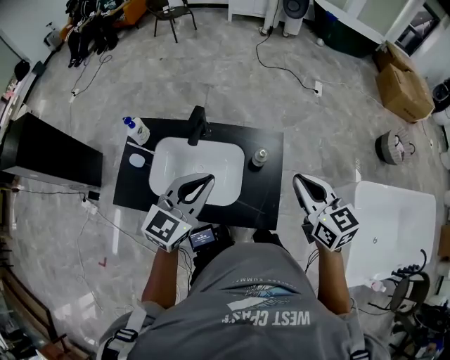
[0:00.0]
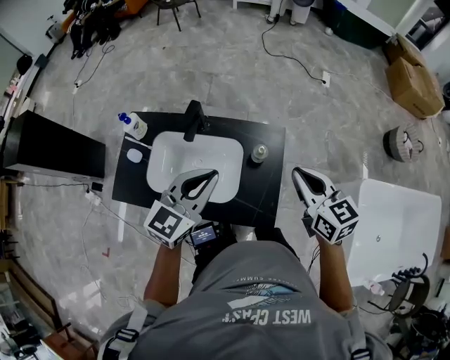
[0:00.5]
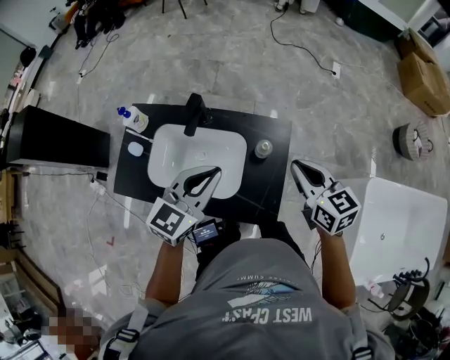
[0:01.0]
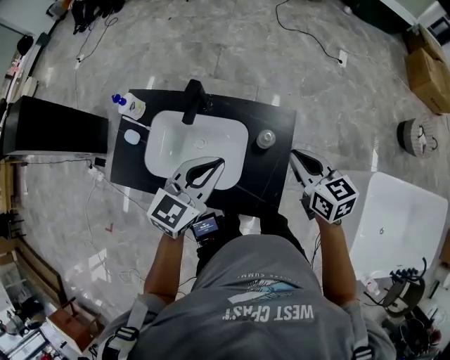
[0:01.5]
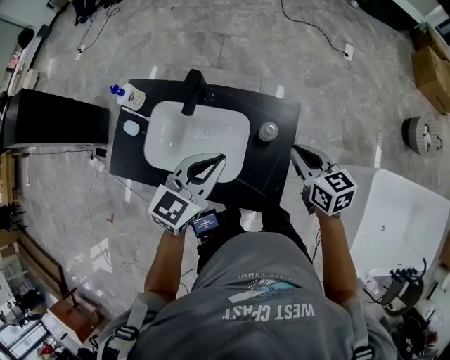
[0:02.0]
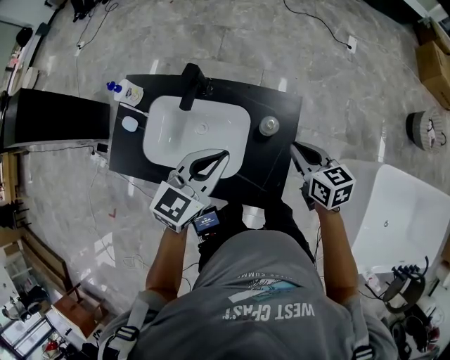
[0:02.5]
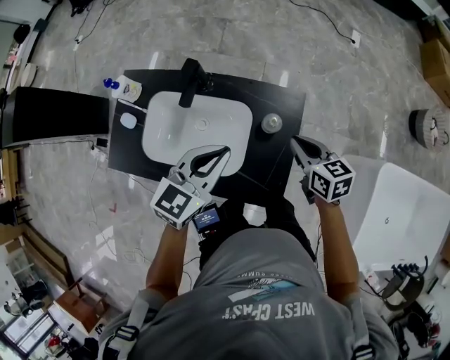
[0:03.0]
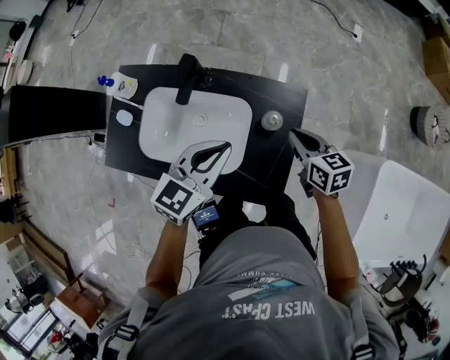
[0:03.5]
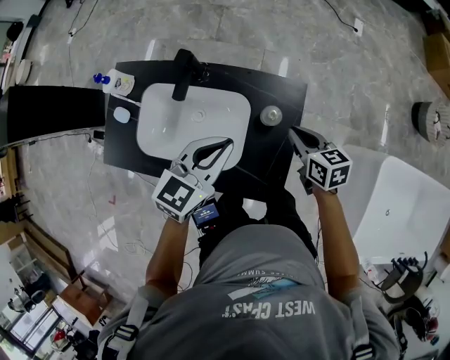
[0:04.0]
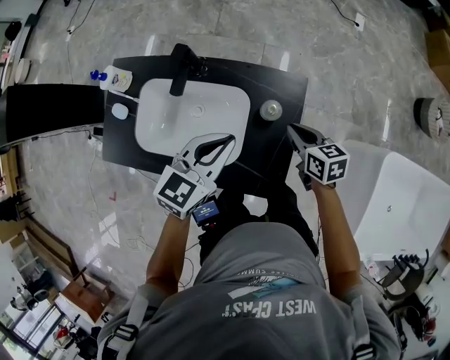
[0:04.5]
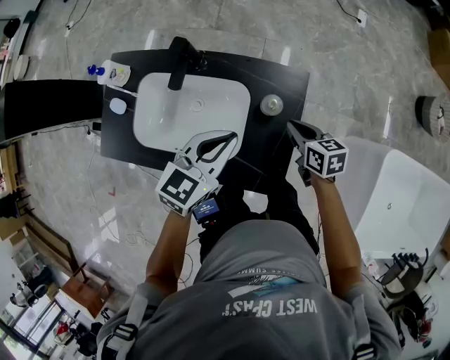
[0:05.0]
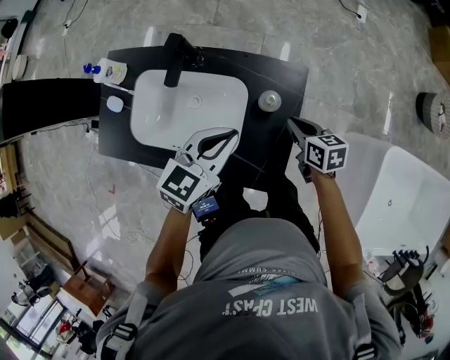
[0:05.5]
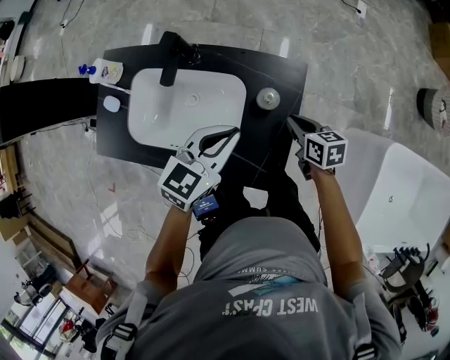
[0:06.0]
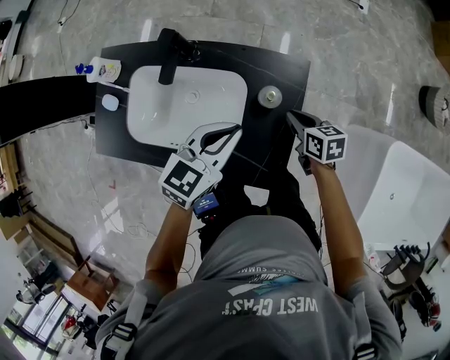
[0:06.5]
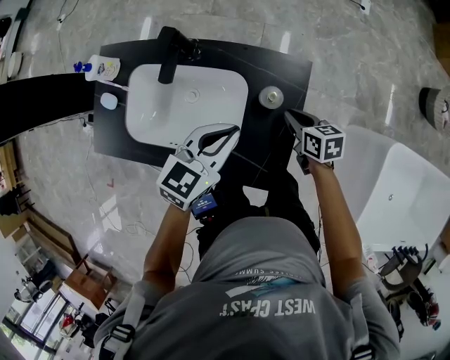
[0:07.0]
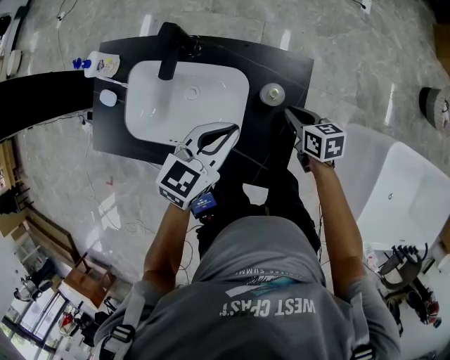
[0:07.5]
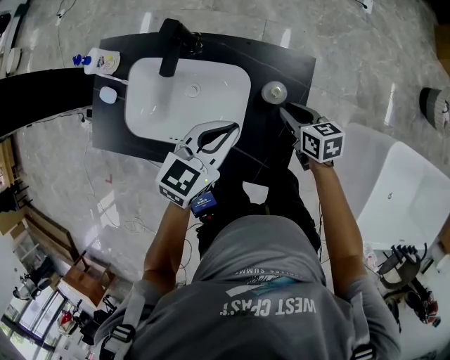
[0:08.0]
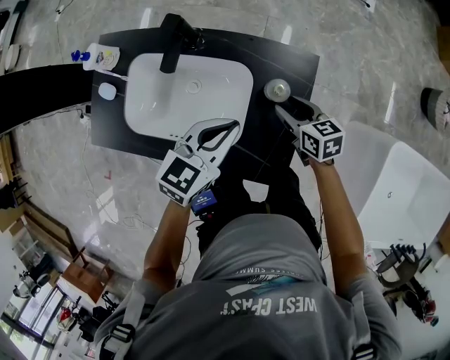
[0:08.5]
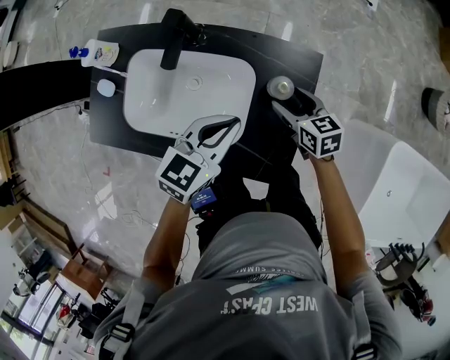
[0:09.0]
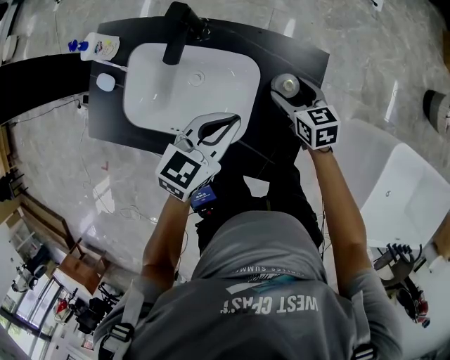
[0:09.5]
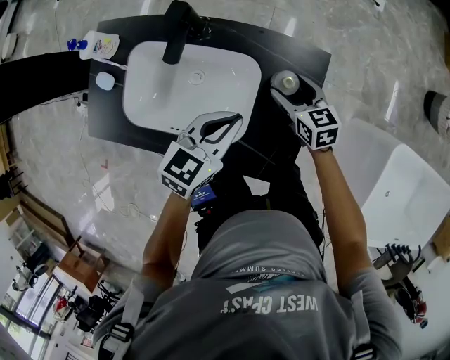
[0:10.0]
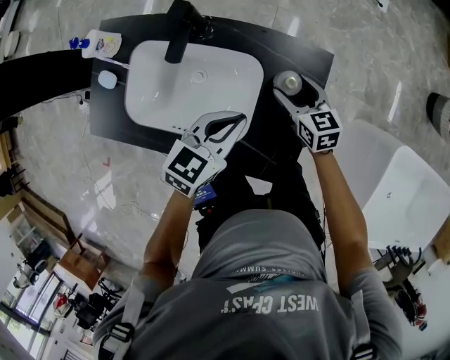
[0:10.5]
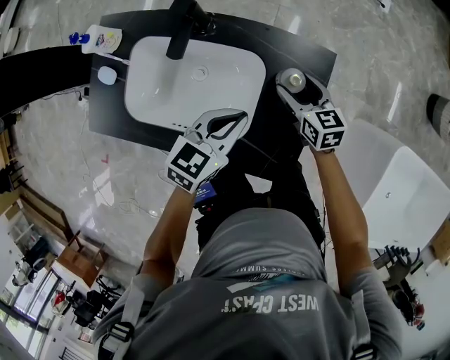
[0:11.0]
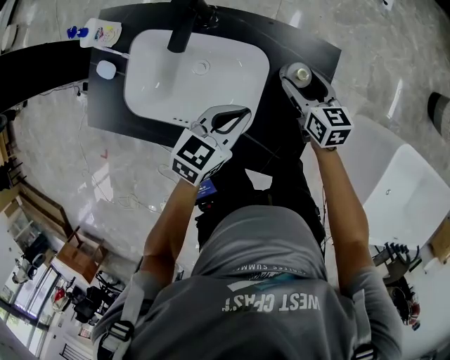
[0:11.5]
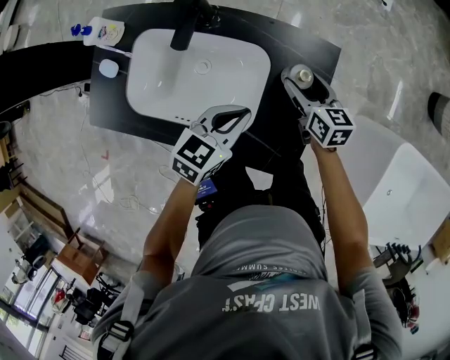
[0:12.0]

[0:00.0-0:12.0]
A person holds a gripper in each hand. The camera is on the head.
0:00.0 to 0:02.0: The right gripper moves downward and forward, about 15 cm. The left gripper shifts about 5 cm downward.
0:02.0 to 0:04.0: The right gripper shifts about 10 cm downward. Meanwhile the left gripper moves roughly 5 cm.
0:04.0 to 0:06.0: The left gripper ends up about 5 cm from where it was. Meanwhile the right gripper heads downward, covering about 10 cm.
0:06.0 to 0:08.0: The grippers stay close to where they were, moving slightly.
0:08.0 to 0:10.0: The right gripper shifts about 5 cm forward, and opens.
0:10.0 to 0:12.0: The grippers stay close to where they were, moving slightly.

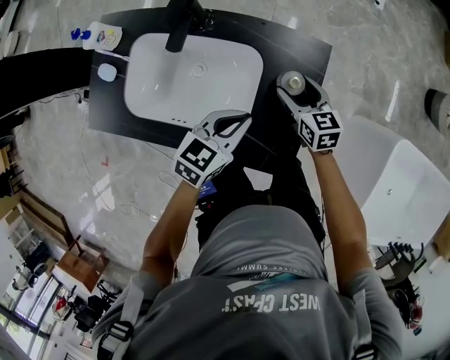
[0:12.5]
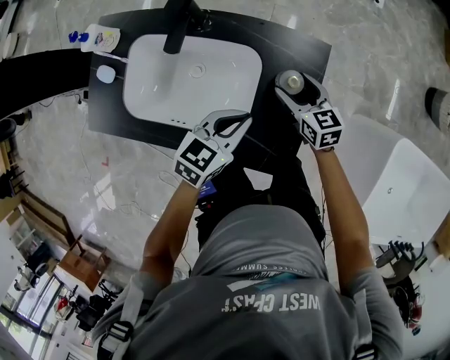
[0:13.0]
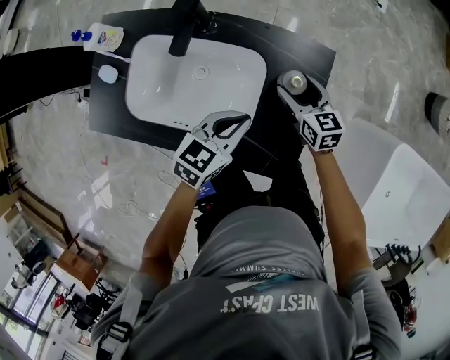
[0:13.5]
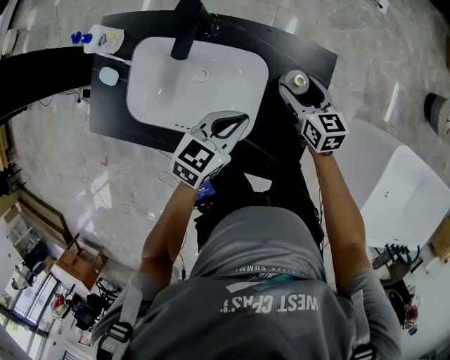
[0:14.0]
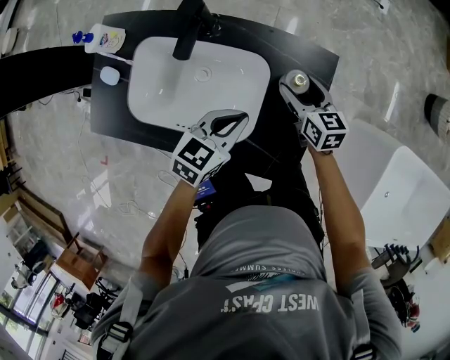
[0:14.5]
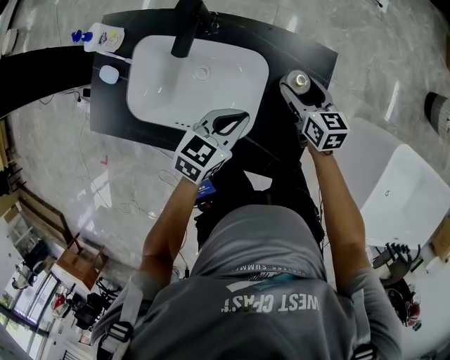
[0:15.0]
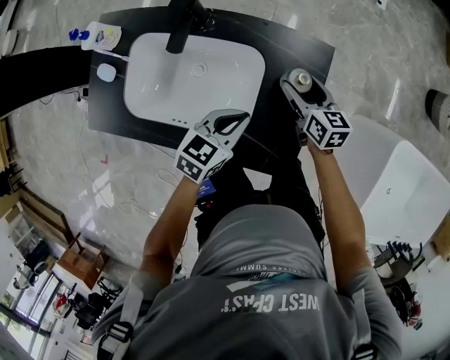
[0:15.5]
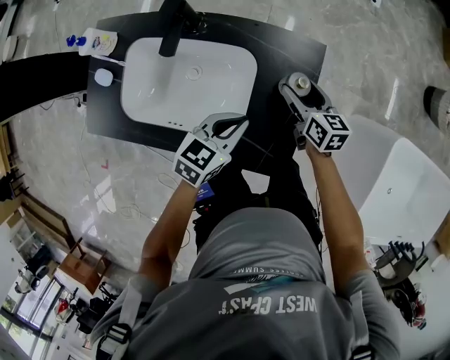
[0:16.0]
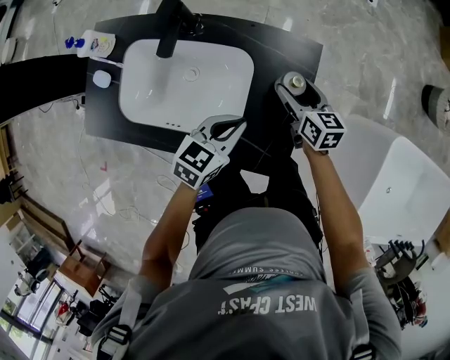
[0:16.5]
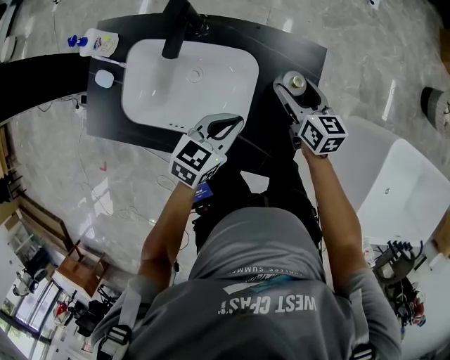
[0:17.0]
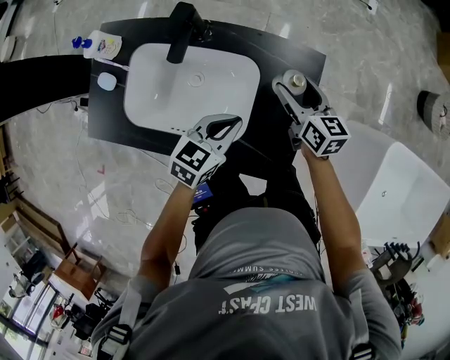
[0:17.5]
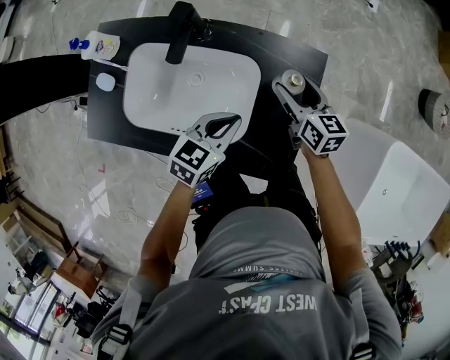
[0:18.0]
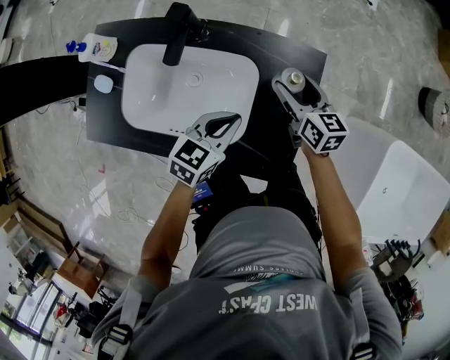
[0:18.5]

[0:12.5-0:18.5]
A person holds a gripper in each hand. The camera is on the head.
0:12.5 to 0:16.5: The grippers move only a little.
0:16.5 to 0:18.5: The right gripper moves about 5 cm.

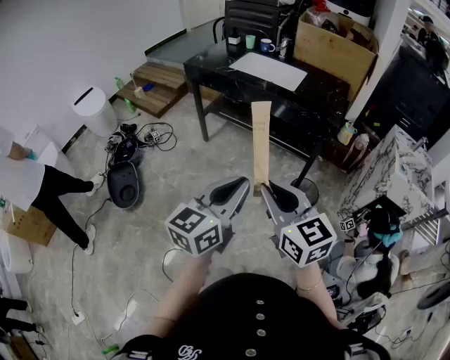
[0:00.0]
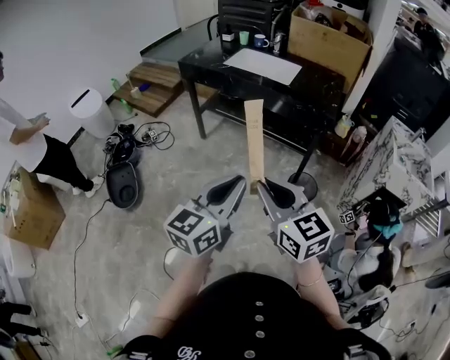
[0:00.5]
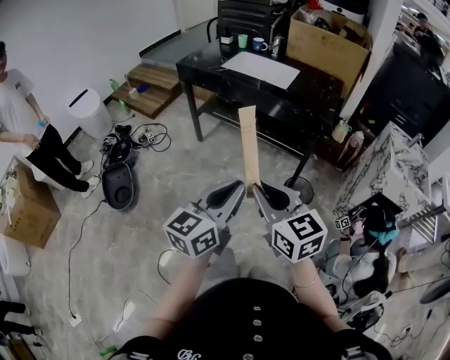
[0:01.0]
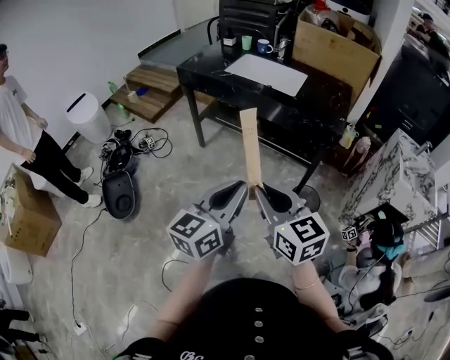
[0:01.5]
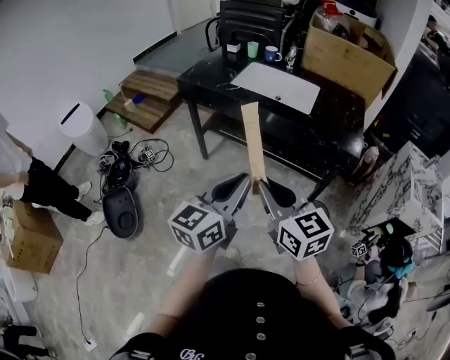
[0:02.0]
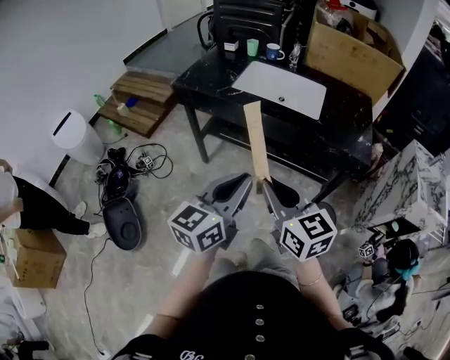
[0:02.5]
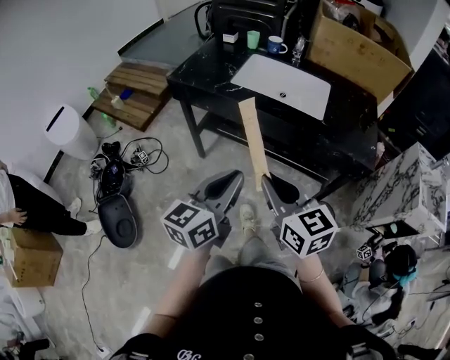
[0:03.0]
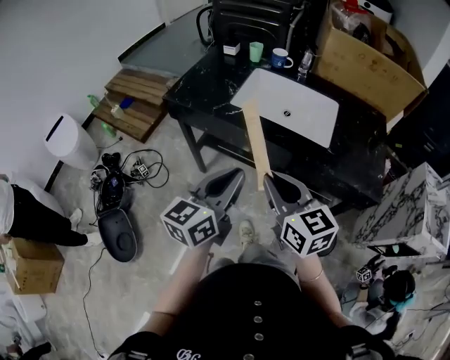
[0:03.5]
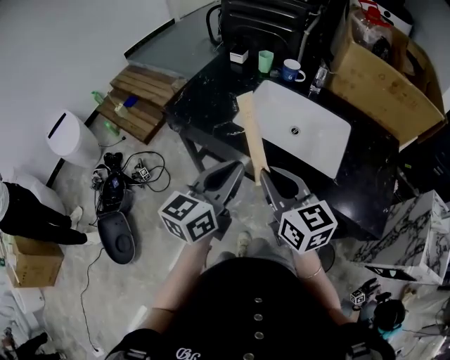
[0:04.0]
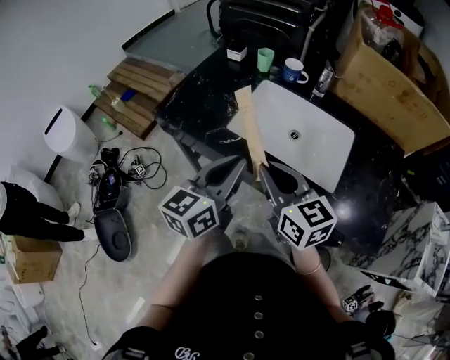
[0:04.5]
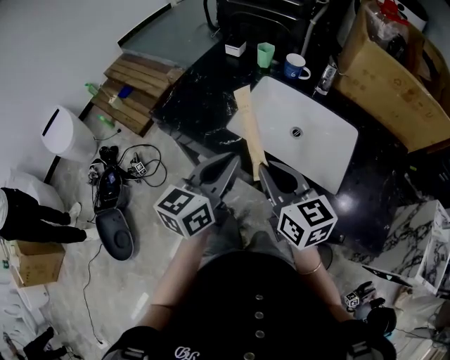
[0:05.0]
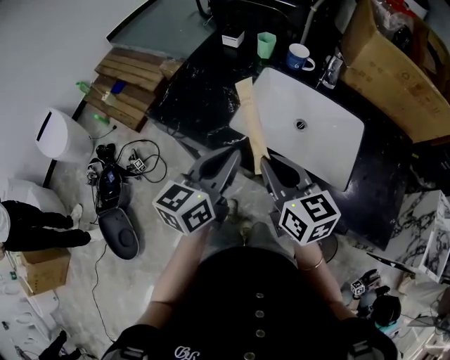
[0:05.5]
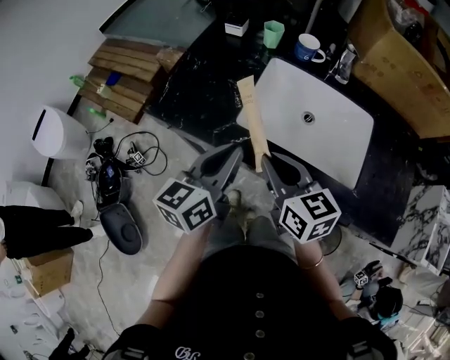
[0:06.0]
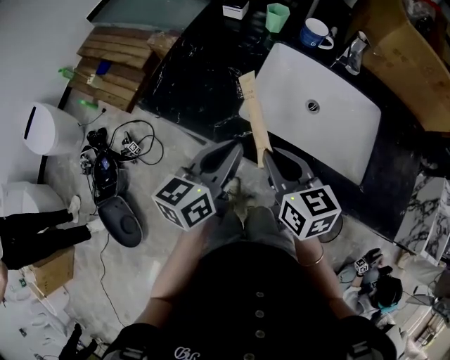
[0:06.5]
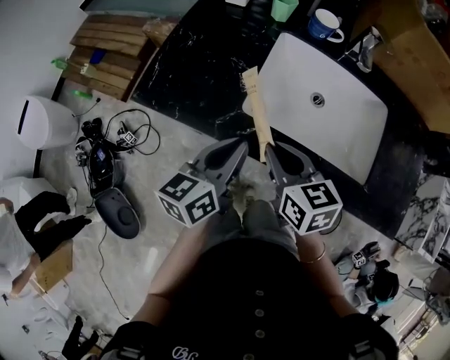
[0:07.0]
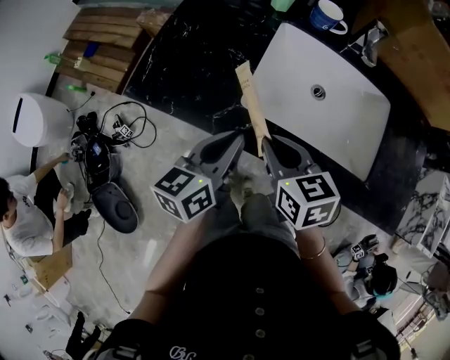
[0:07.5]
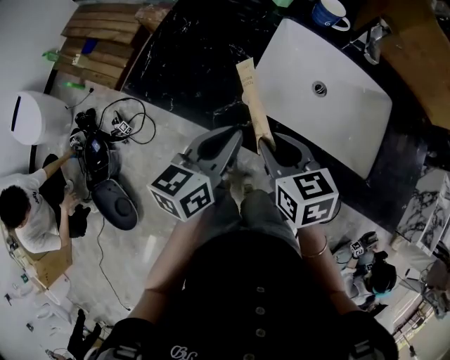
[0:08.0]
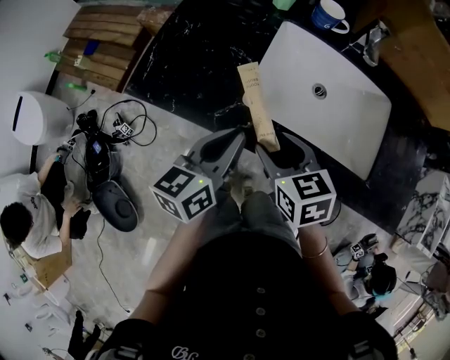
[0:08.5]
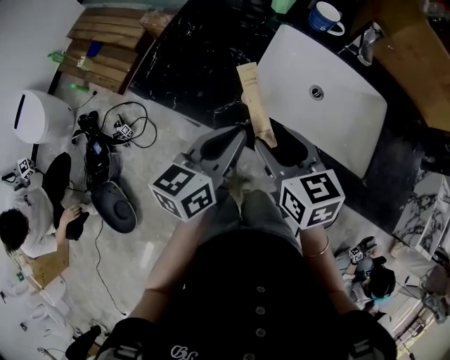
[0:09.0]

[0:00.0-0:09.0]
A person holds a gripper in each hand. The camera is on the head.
0:00.0 to 0:02.0: Both grippers move forward, approximately 25 cm.
0:02.0 to 0:04.5: Both grippers are carried forward, some 40 cm.
0:04.5 to 0:07.0: Both grippers travel together downward, forward and to the left, about 15 cm. The left gripper changes its angle by some 20 degrees, while the right gripper changes its angle by roughly 20 degrees.
0:07.0 to 0:09.0: The right gripper opens up.
